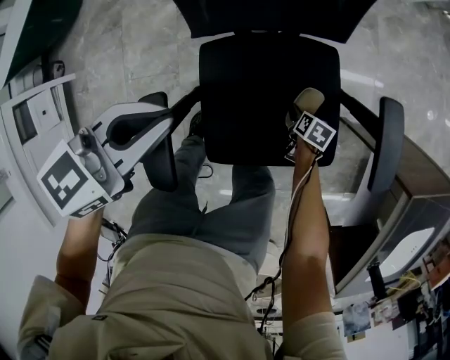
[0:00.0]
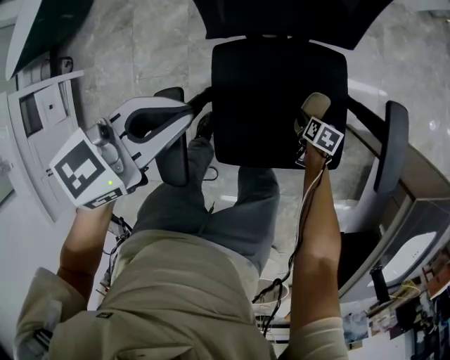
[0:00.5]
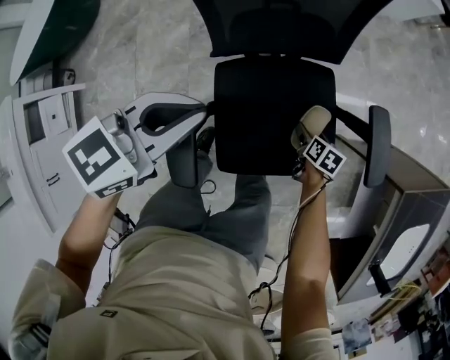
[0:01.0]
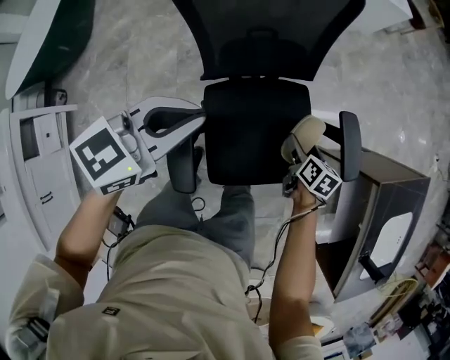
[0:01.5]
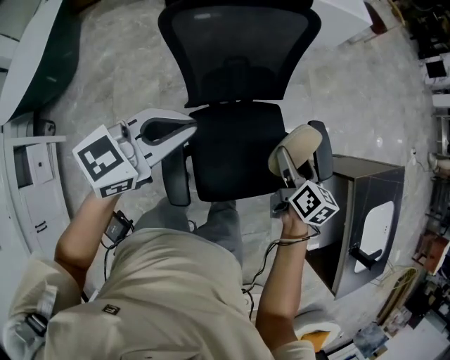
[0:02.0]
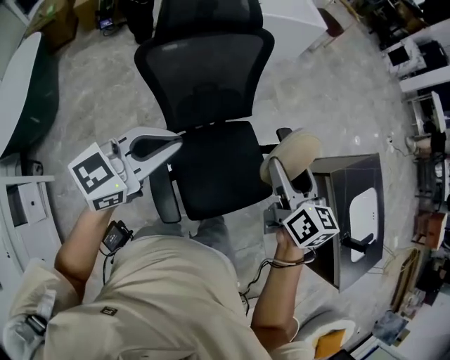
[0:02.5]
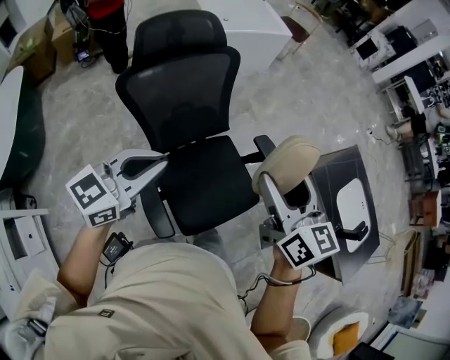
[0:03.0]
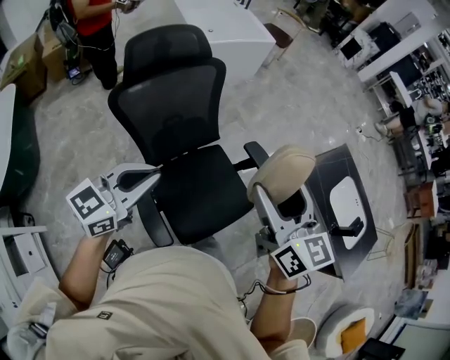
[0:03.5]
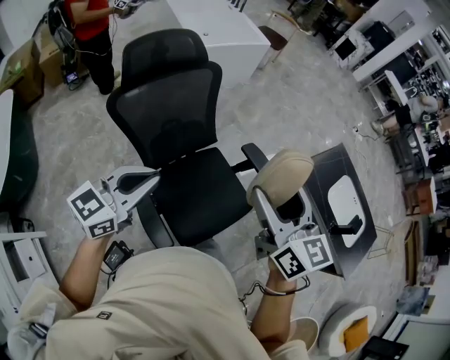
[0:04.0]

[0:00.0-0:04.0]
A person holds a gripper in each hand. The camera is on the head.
0:00.0 to 0:02.0: The right gripper heads upward, covering some 50 cm, and angles its fingers upward, by roughly 40 degrees. The left gripper is displaced upward by some 20 cm, and swivels some 20 degrees.
0:02.0 to 0:04.0: The left gripper heads upward and backward, covering about 10 cm. Meanwhile the right gripper is displaced upward by some 30 cm, and swivels some 40 degrees.

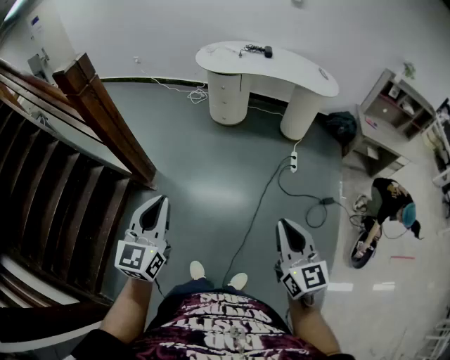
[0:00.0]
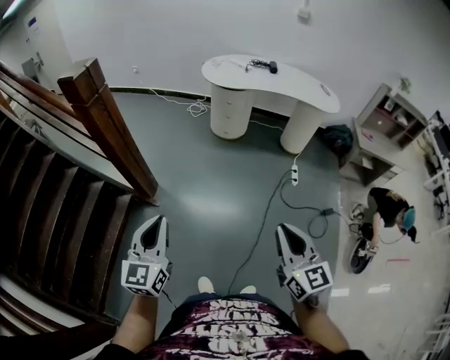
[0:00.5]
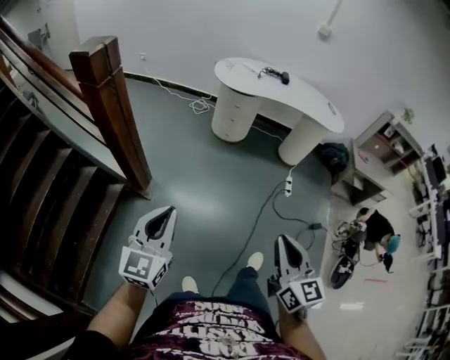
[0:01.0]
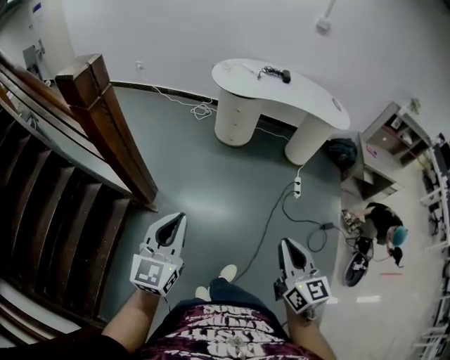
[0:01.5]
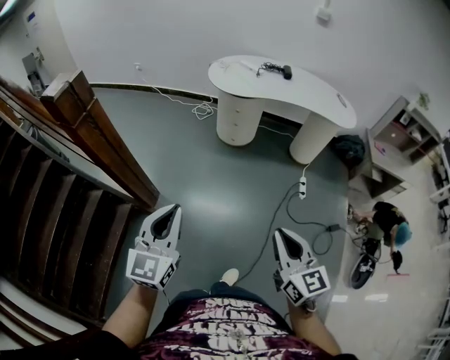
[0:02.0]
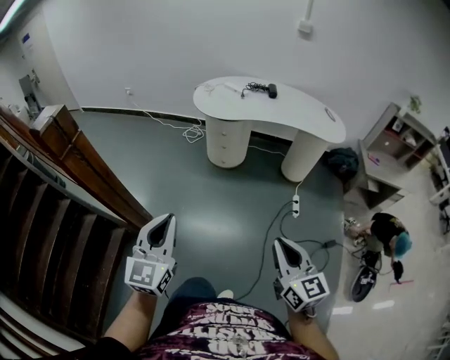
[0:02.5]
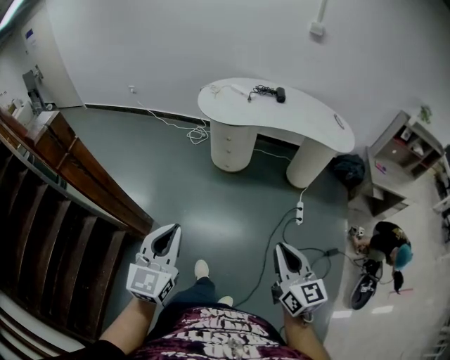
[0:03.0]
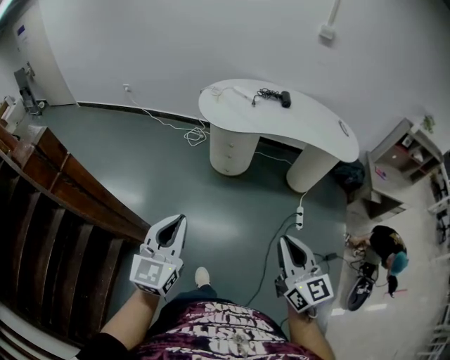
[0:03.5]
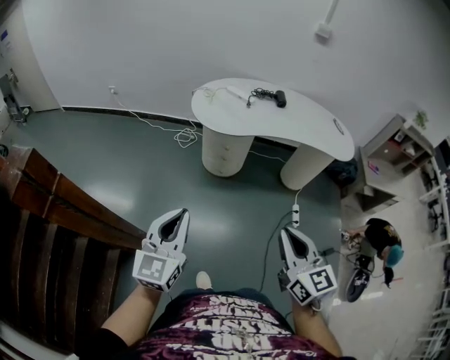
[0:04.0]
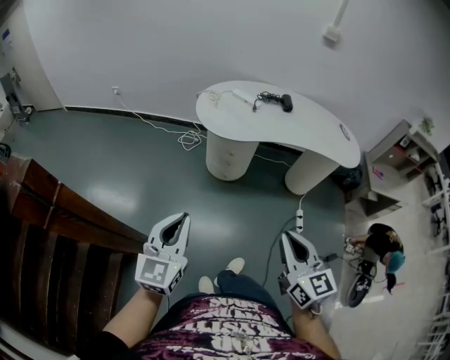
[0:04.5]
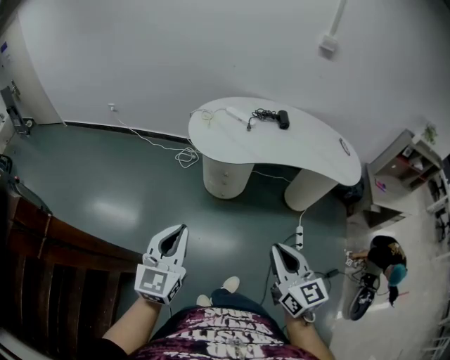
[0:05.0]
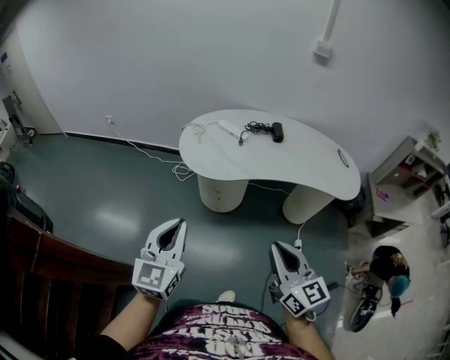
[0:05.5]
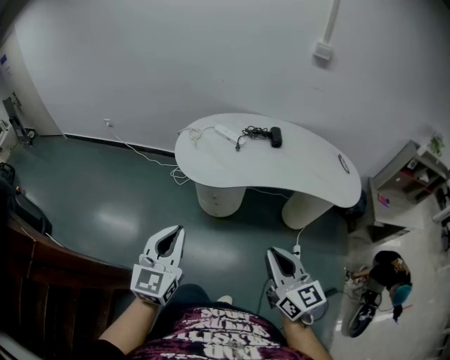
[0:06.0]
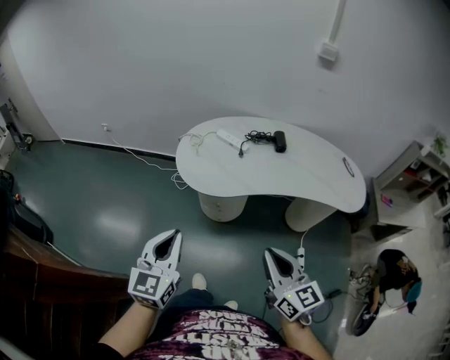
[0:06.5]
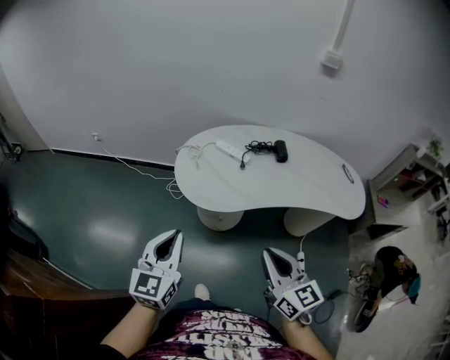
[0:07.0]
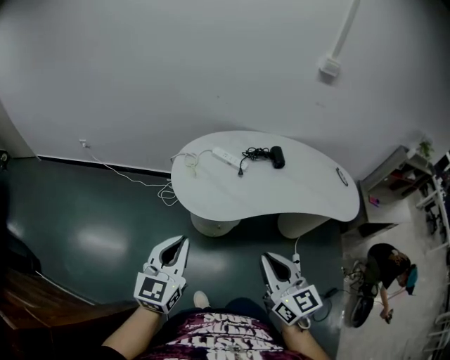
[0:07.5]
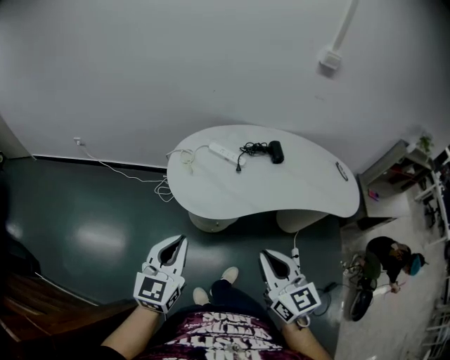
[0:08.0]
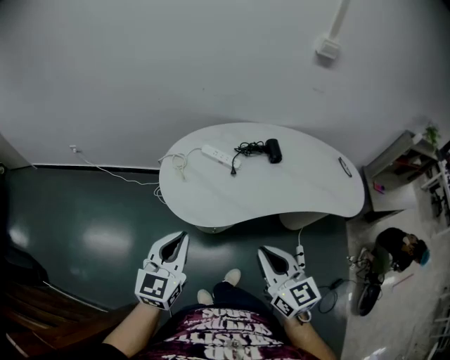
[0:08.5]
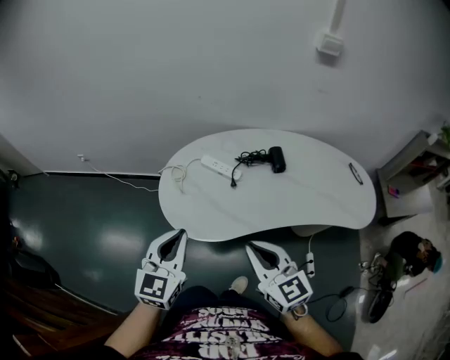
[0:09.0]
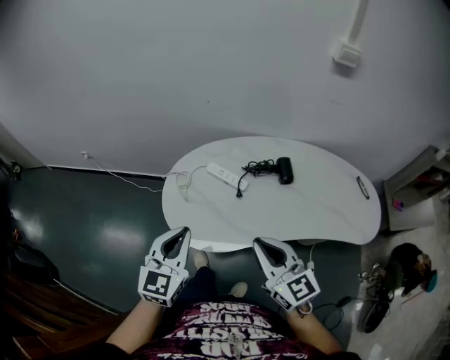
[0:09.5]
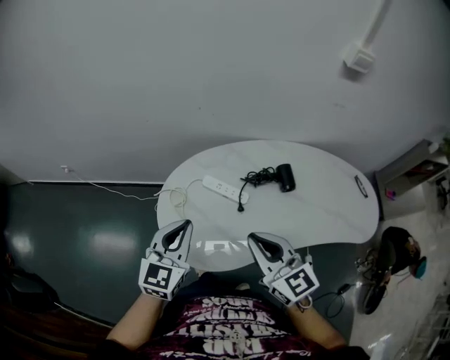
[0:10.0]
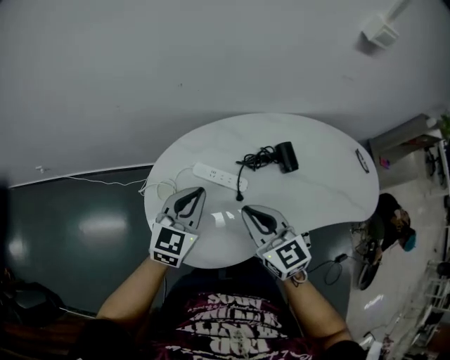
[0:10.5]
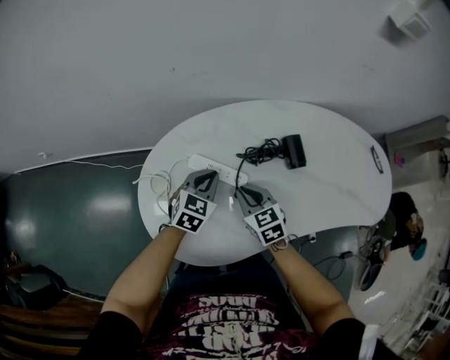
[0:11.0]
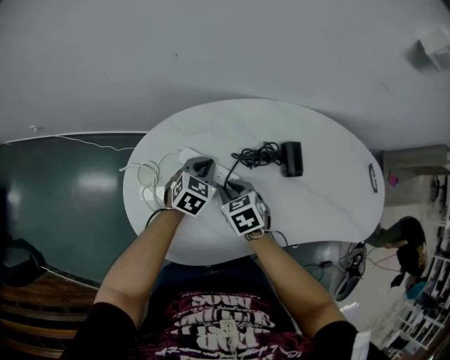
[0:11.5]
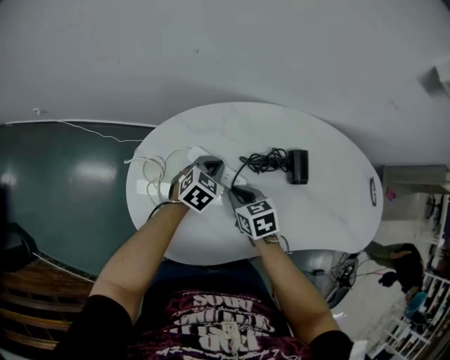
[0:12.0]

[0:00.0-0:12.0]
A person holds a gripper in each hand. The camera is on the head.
0:00.0 to 0:02.0: The two grippers go roughly 25 cm forward and to the left.
0:02.0 to 0:04.0: The grippers both shift forward by some 30 cm.
0:04.0 to 0:06.0: The grippers both shift forward and to the right by some 25 cm.
0:06.0 to 0:08.0: The grippers both shift forward and to the left by approximately 20 cm.
0:08.0 to 0:10.0: Both grippers travel together forward, approximately 30 cm.
0:10.0 to 0:12.0: The left gripper heads downward, forward and to the right, covering roughly 35 cm, and angles its fingers downward, by approximately 30 degrees. Meanwhile the right gripper is displaced downward and forward by about 35 cm, and angles its fingers downward, by about 40 degrees.

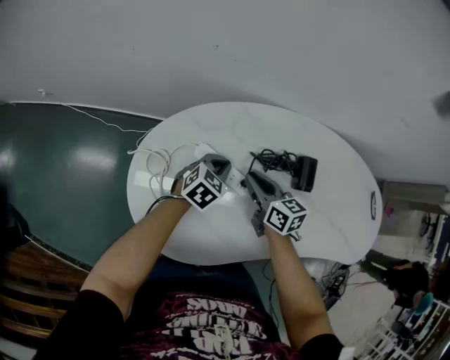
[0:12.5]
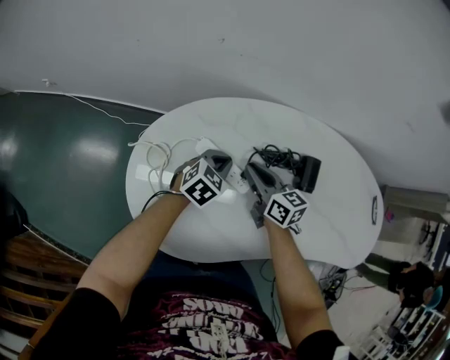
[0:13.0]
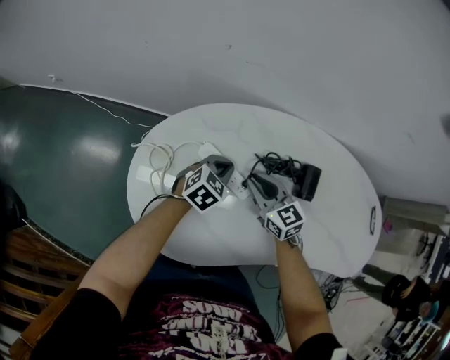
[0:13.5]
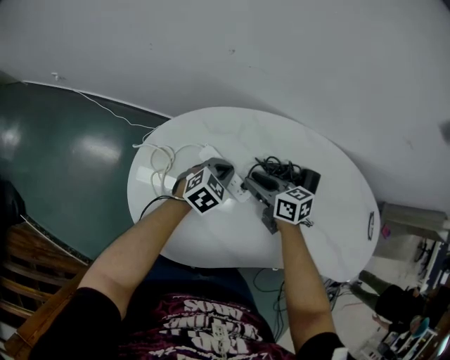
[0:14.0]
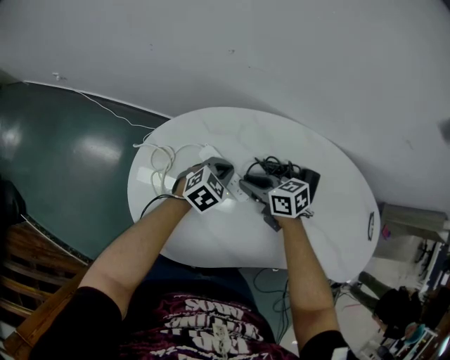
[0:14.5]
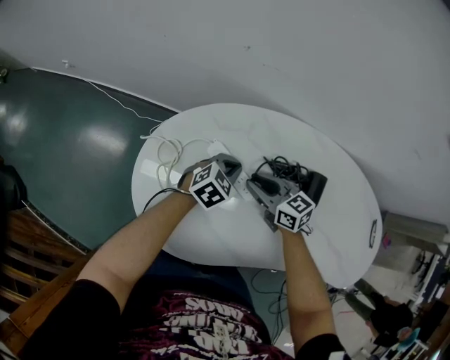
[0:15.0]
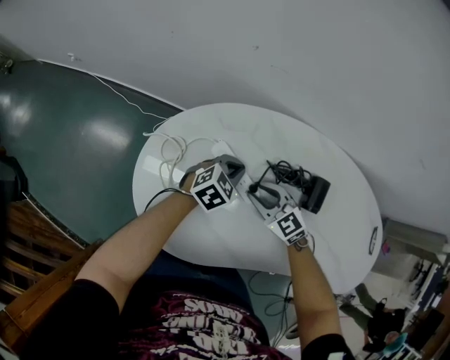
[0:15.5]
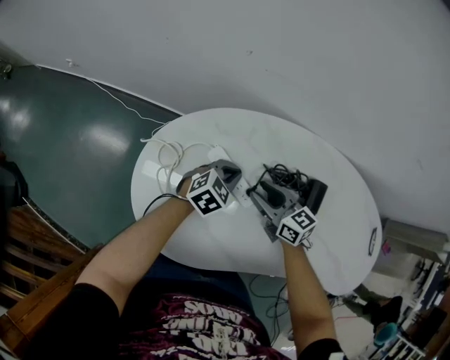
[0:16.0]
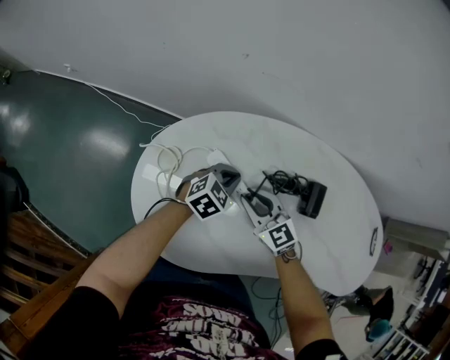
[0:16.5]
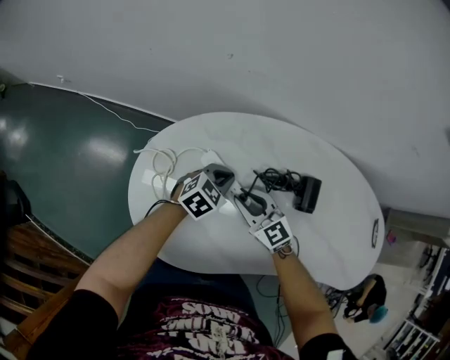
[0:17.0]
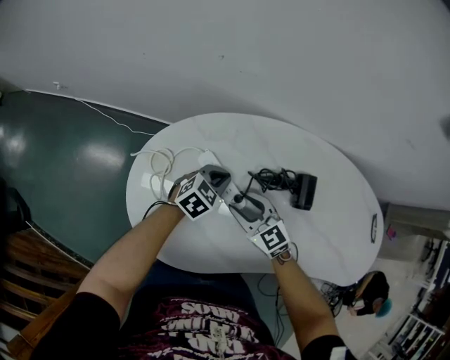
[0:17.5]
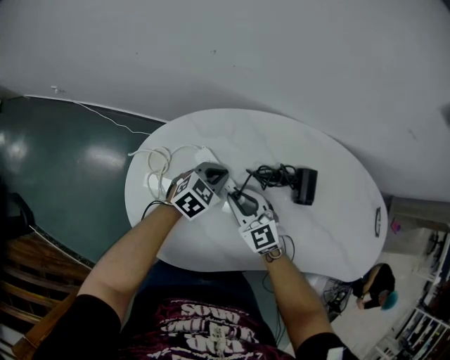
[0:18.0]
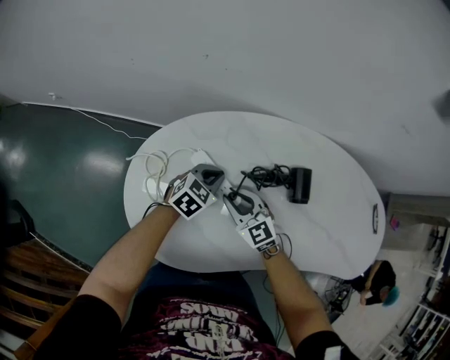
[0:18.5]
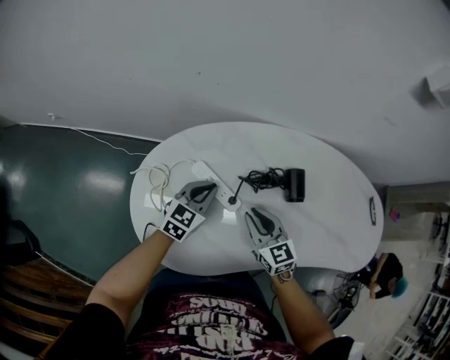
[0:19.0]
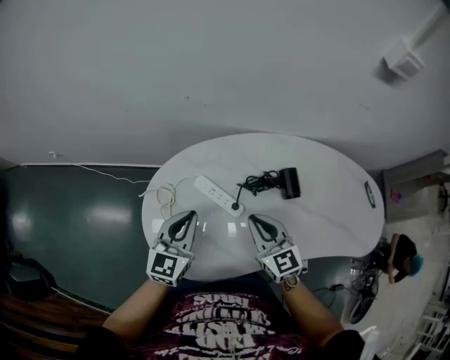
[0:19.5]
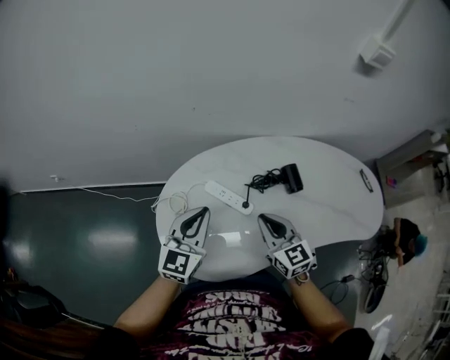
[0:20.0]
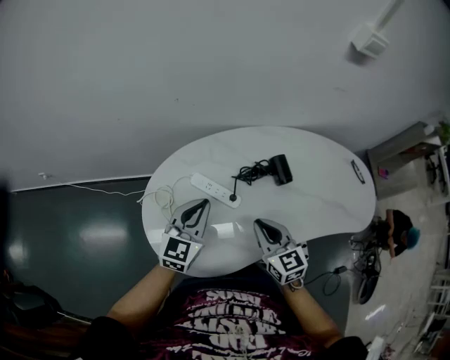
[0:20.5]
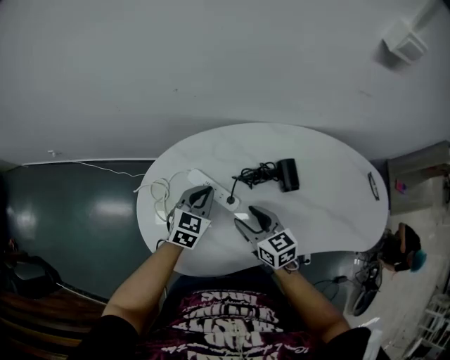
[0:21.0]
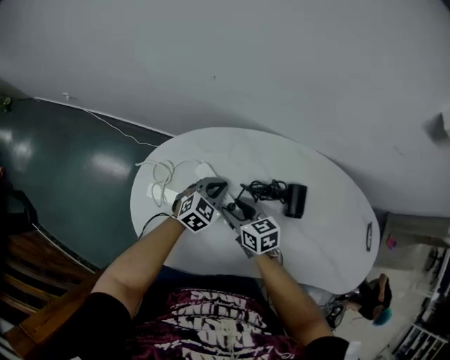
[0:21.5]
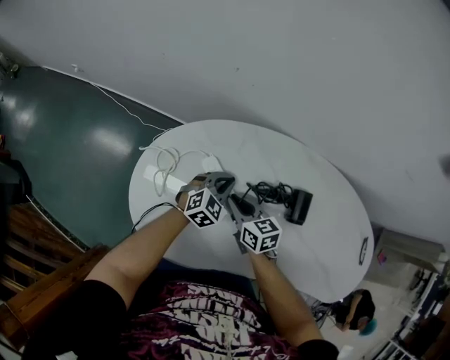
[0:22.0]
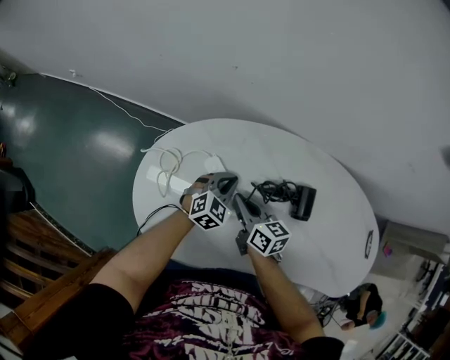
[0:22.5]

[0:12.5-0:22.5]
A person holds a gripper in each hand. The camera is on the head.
0:12.5 to 0:14.5: The right gripper changes its angle by some 30 degrees.
0:14.5 to 0:16.5: The right gripper turns by about 40 degrees.
0:16.5 to 0:18.5: The grippers move only a little.
0:18.5 to 0:20.5: The left gripper moves upward, about 20 cm, and tilts its fingers approximately 30 degrees upward. Meanwhile the right gripper heads upward, backward and to the right, covering about 20 cm, and swivels roughly 30 degrees.
0:20.5 to 0:22.5: The left gripper moves downward and to the right, about 20 cm, and rotates roughly 30 degrees. Meanwhile the right gripper shifts about 15 cm forward and downward, rotates roughly 40 degrees, and opens and closes again.
